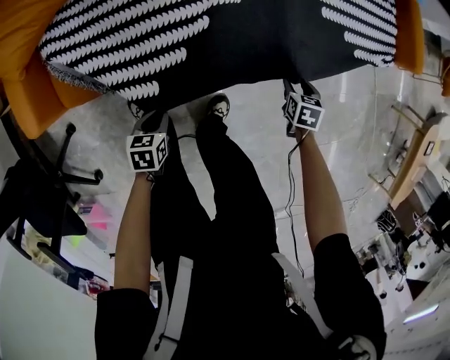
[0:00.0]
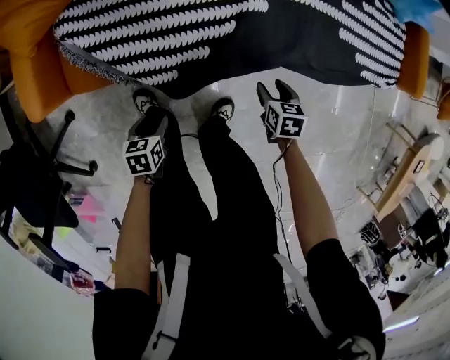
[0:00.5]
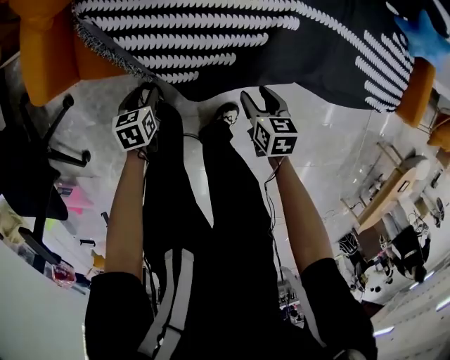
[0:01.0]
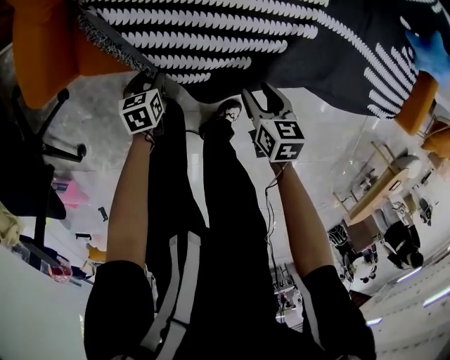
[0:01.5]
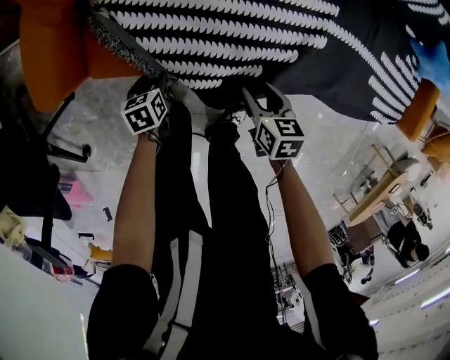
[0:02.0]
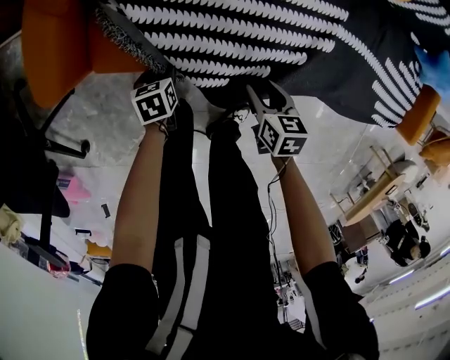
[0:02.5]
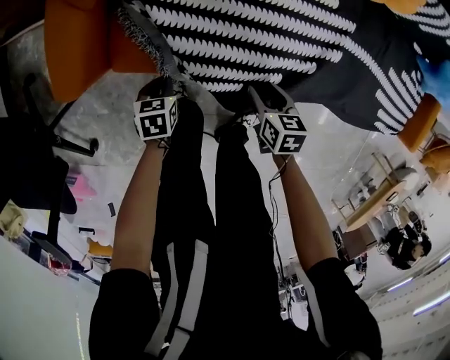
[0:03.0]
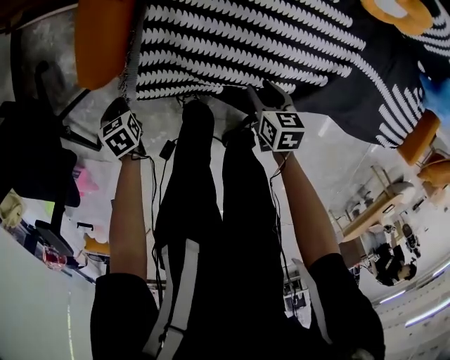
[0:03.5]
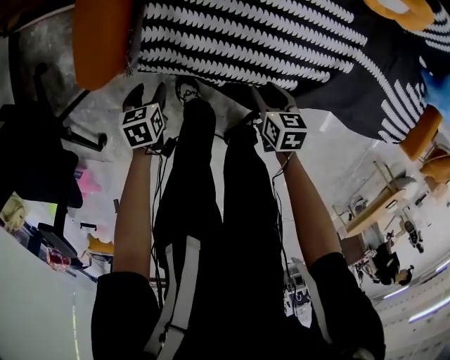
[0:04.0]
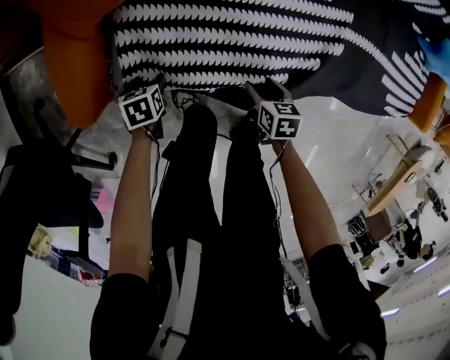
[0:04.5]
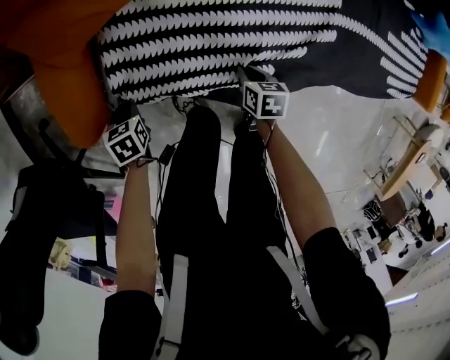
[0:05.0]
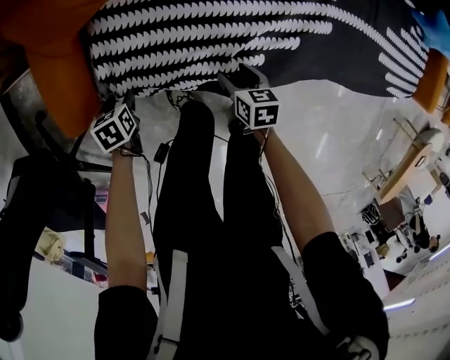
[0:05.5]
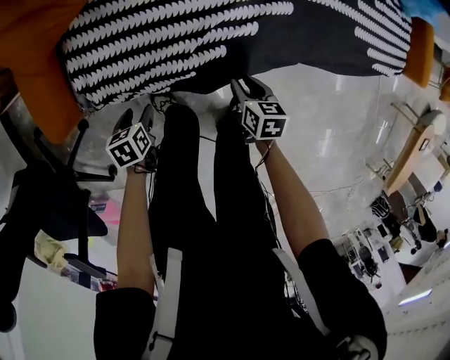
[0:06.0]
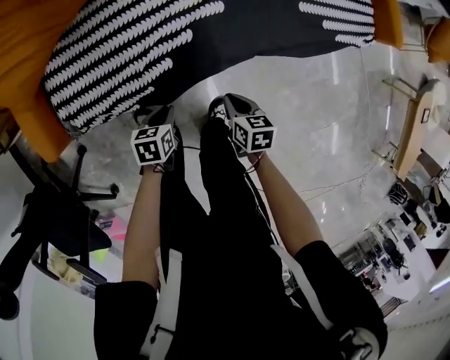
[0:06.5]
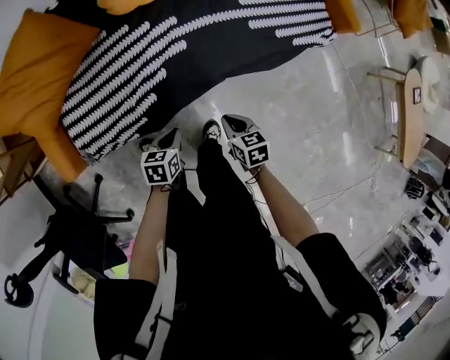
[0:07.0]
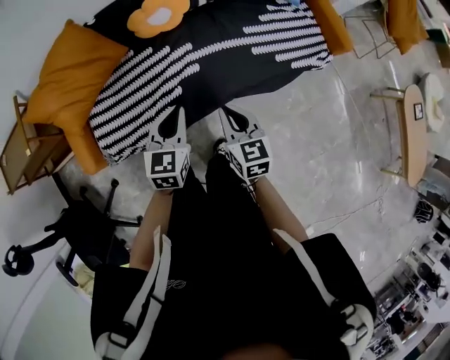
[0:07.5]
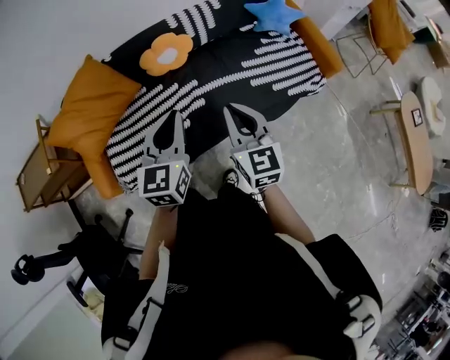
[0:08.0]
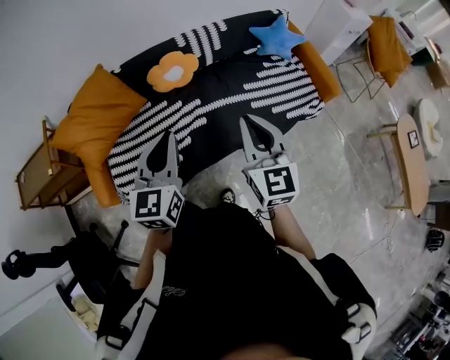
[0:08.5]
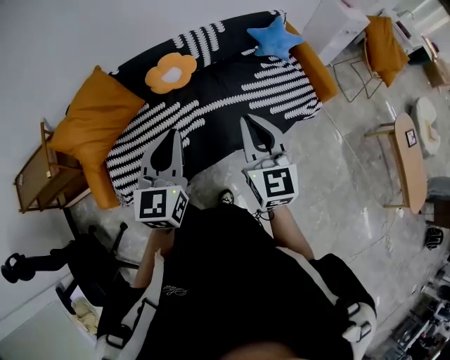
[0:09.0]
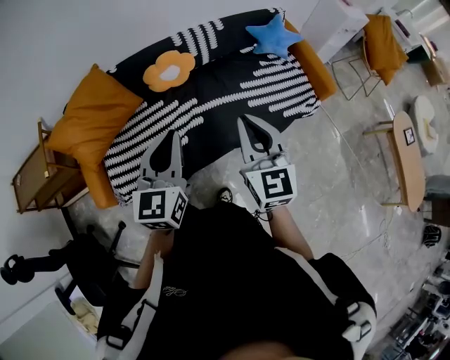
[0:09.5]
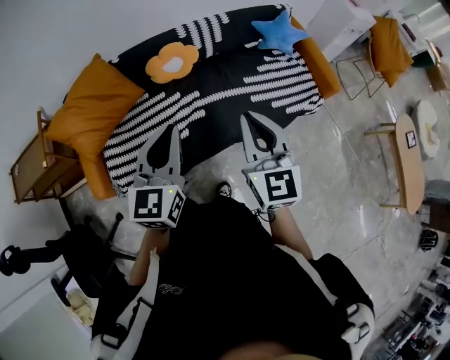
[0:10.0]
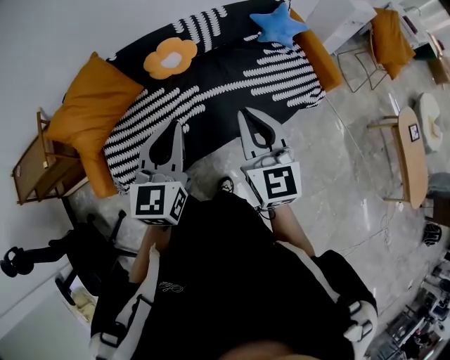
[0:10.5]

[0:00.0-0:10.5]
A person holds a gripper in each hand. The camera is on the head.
0:00.0 to 0:02.0: The left gripper shifts by approximately 25 cm, turns by approximately 30 degrees, and opens up. The right gripper ends up some 40 cm from where it was, and rotates roughly 30 degrees.
0:02.0 to 0:04.0: The right gripper ends up approximately 10 cm from where it was; the left gripper closes, then opens again.
0:04.0 to 0:06.5: The right gripper changes place by roughly 30 cm, swivels roughly 30 degrees, and closes up, while the left gripper moves some 40 cm, turns by some 30 degrees, and closes up.
0:06.5 to 0:08.5: Both grippers travel together upward, about 60 cm. The left gripper tilts its fingers some 50 degrees upward. Meanwhile the right gripper angles its fingers upward, by some 50 degrees.
0:08.5 to 0:10.5: The grippers stay close to where they were, moving slightly.

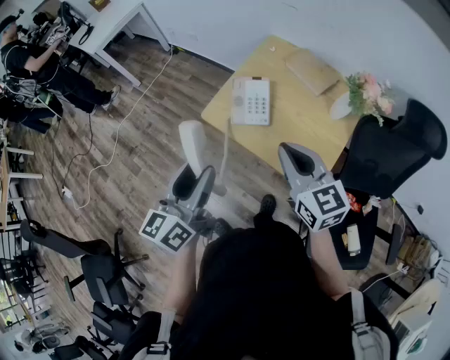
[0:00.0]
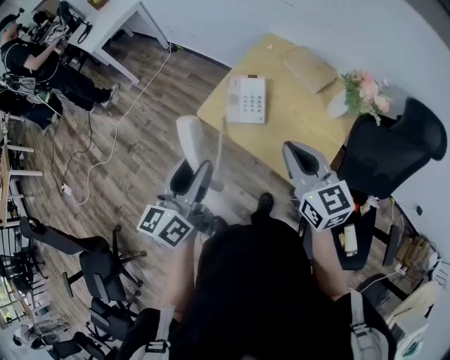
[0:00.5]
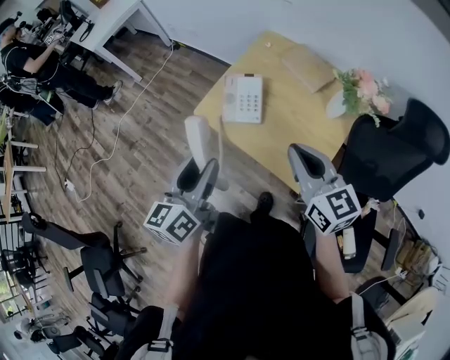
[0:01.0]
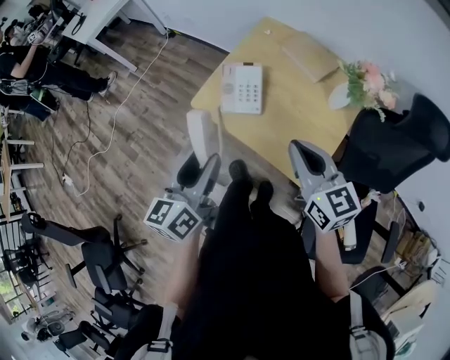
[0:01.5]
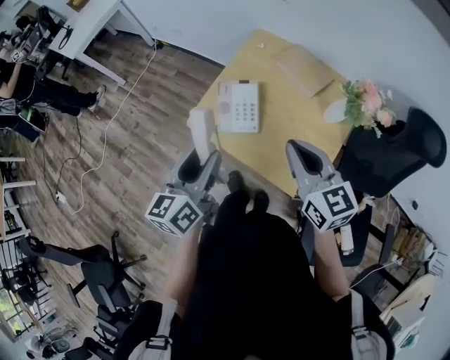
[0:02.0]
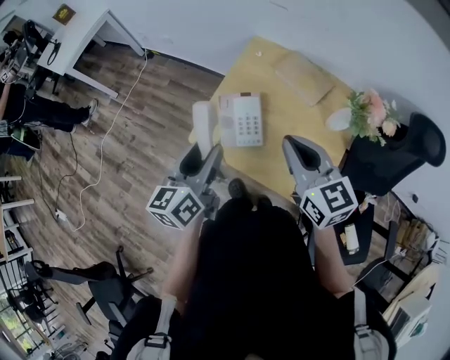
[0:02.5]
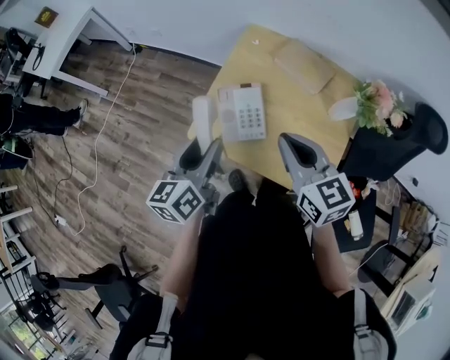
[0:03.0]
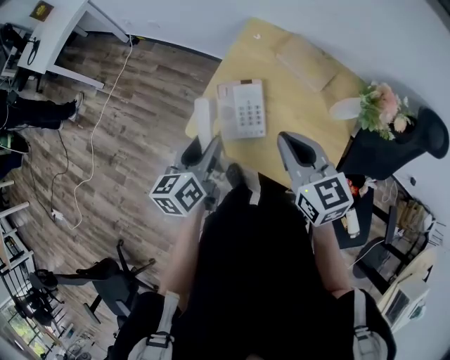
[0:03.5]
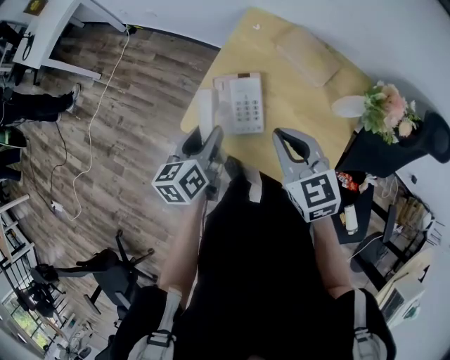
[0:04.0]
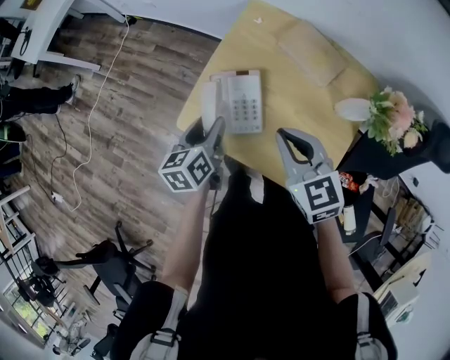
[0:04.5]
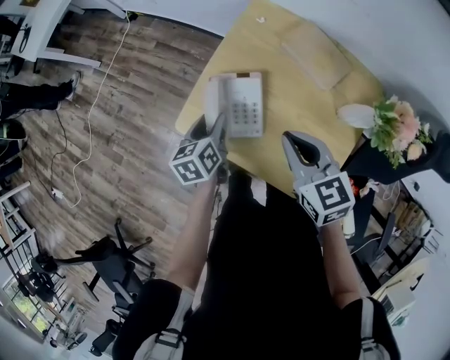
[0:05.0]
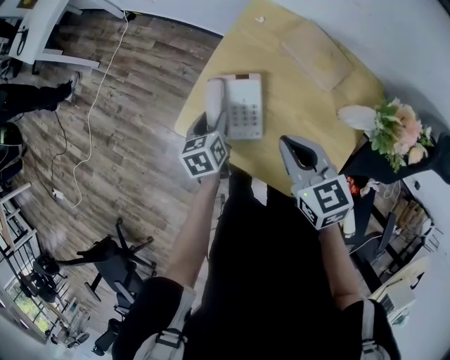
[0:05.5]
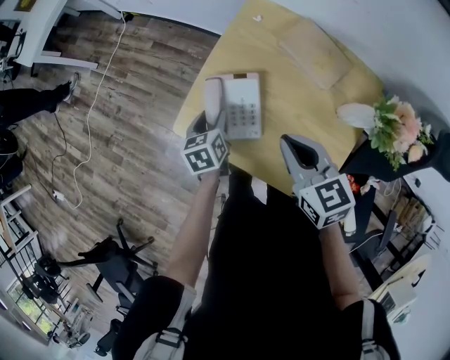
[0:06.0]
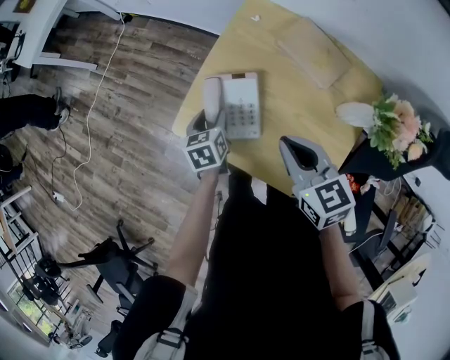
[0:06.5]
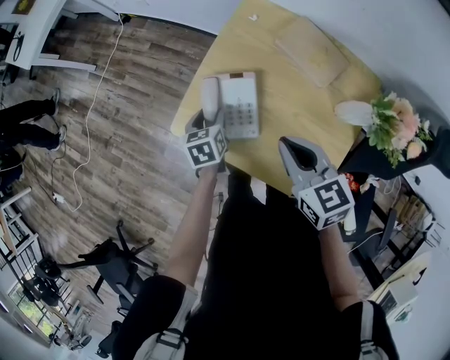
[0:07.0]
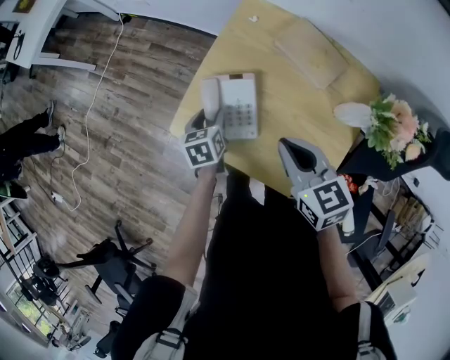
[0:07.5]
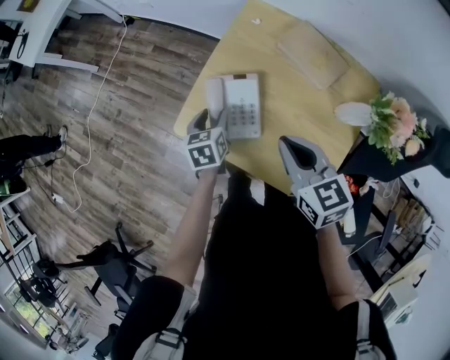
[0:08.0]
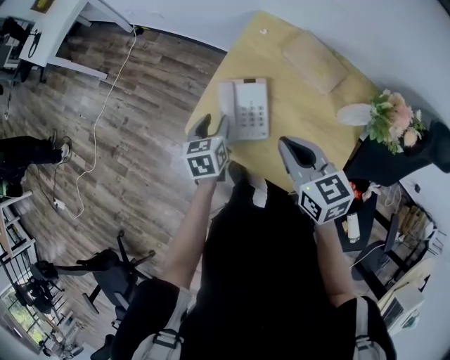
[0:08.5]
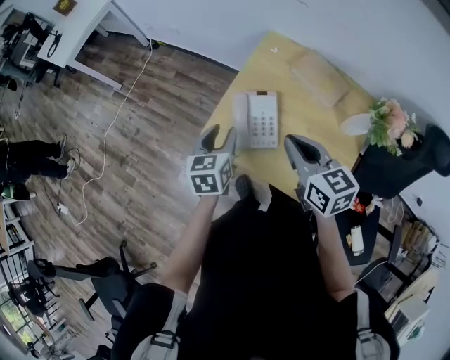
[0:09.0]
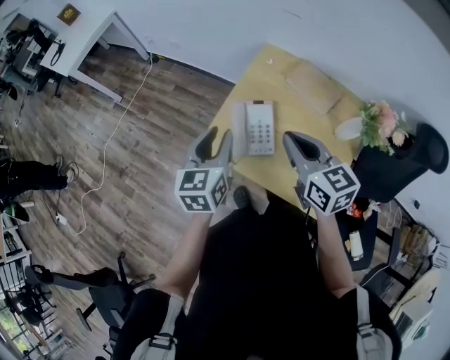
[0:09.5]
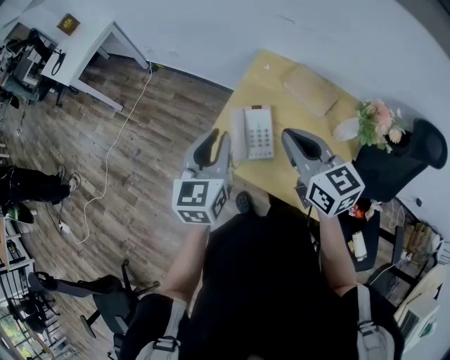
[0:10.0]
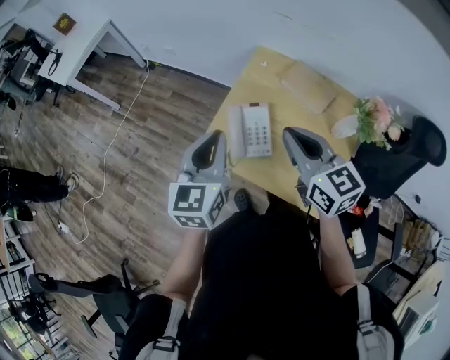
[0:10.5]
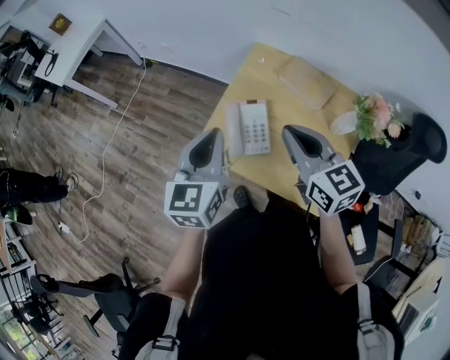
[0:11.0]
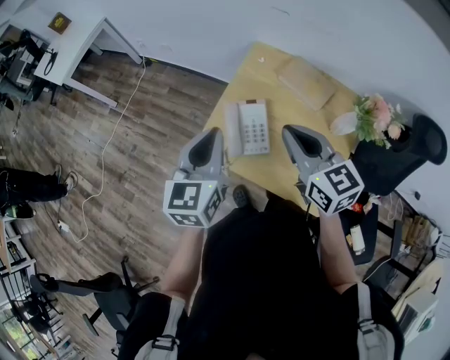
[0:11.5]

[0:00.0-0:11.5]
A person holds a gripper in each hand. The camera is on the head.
0:00.0 to 0:02.0: The left gripper shifts roughly 15 cm forward, to the right and downward; the right gripper travels forward and to the right by approximately 10 cm.
0:02.0 to 0:04.0: The right gripper is displaced forward, downward and to the left by approximately 15 cm, while the left gripper travels forward and downward by some 20 cm.
0:04.0 to 0:06.0: The right gripper moves some 5 cm; the left gripper shifts approximately 15 cm downward and forward, and changes its angle by roughly 20 degrees.
0:06.0 to 0:07.5: The grippers make only small movements.
0:07.5 to 0:09.5: The left gripper is displaced upward by about 25 cm, swivels some 30 degrees, and closes its fingers, while the right gripper is displaced upward and to the left by approximately 15 cm.
0:09.5 to 0:11.5: The left gripper is displaced upward by about 5 cm, and closes its fingers.

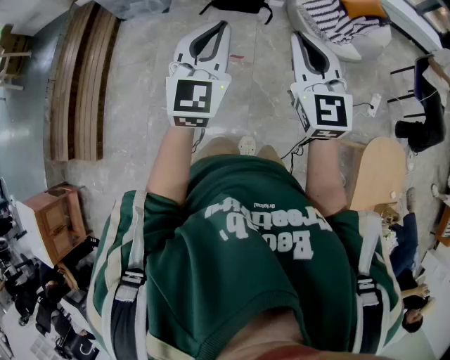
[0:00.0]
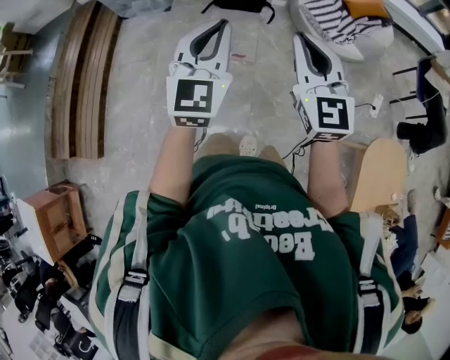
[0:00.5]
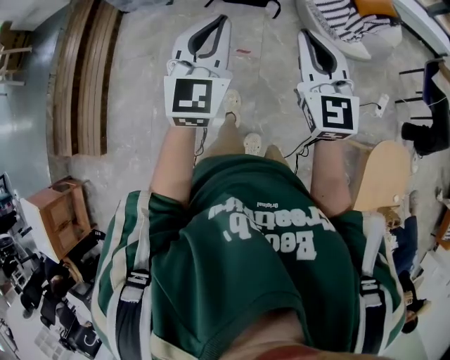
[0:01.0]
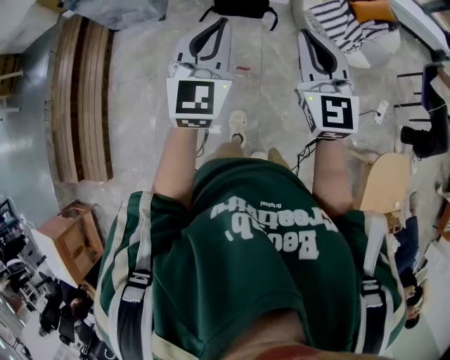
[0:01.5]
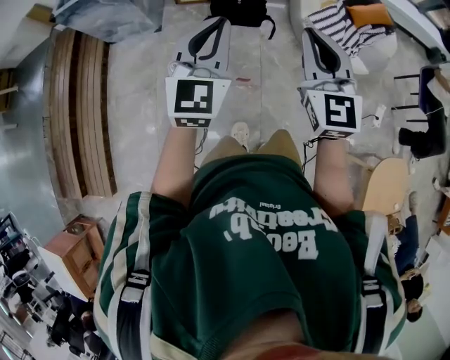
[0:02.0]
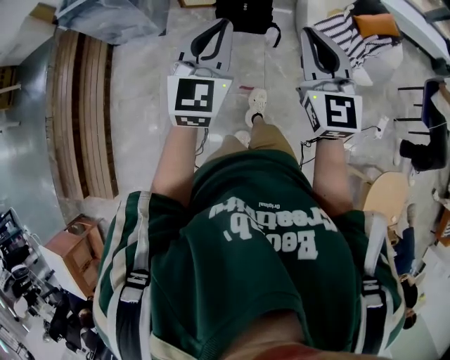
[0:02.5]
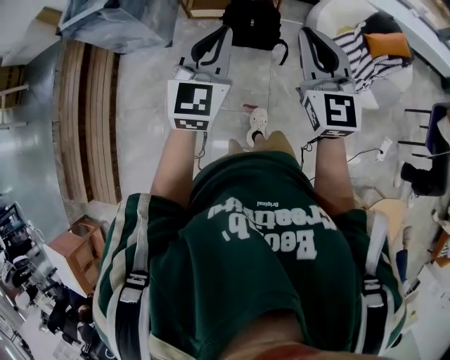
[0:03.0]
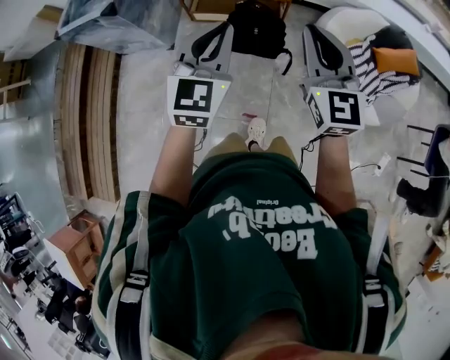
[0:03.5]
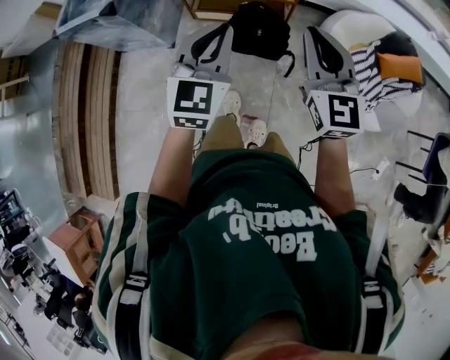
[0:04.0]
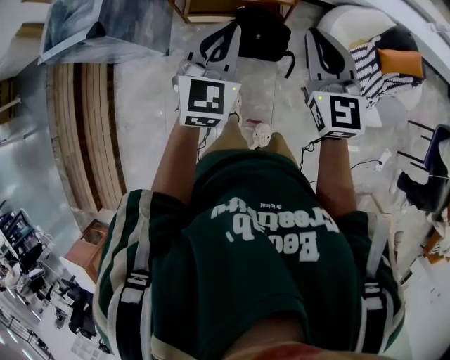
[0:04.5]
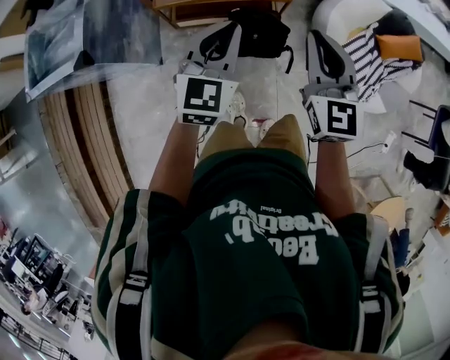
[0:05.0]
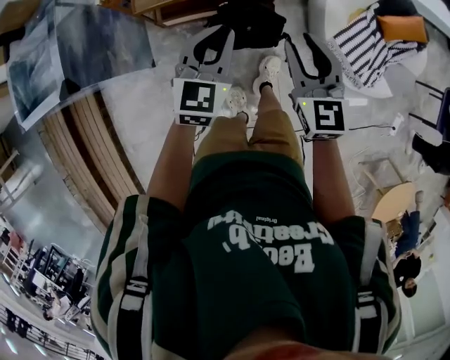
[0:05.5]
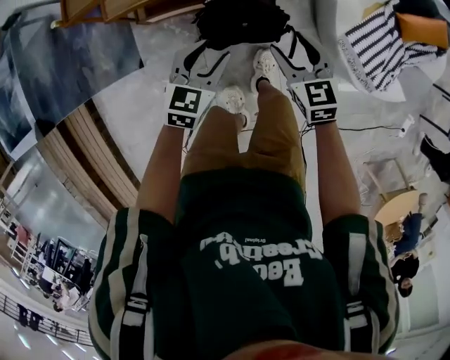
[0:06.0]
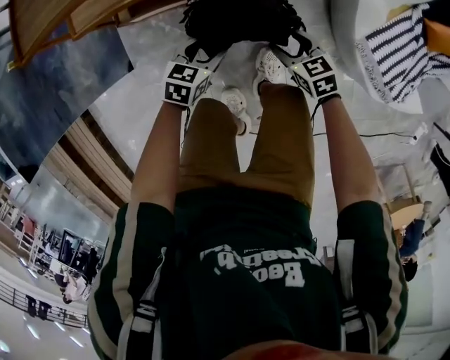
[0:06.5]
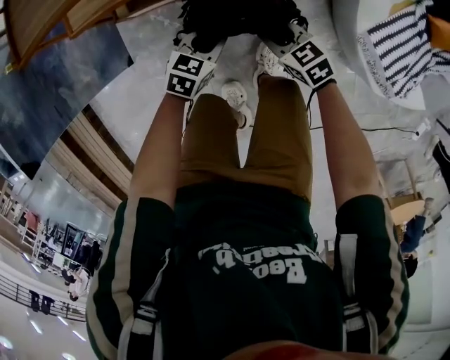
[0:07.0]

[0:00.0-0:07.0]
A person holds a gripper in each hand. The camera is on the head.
0:00.0 to 0:02.0: The grippers both shift forward by some 35 cm.
0:02.0 to 0:03.5: The two grippers go some 40 cm forward.
0:03.5 to 0:05.0: The right gripper moves forward and to the left, about 30 cm, while the left gripper is displaced forward by roughly 30 cm.
0:05.0 to 0:07.0: The two grippers go about 60 cm downward. The left gripper angles its fingers downward, by roughly 40 degrees, and opens, then closes once more, while the right gripper tilts its fingers approximately 30 degrees downward, and opens, then closes once more.
